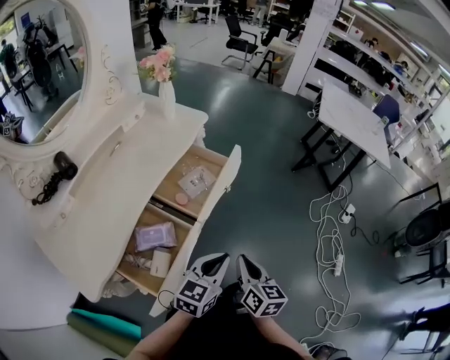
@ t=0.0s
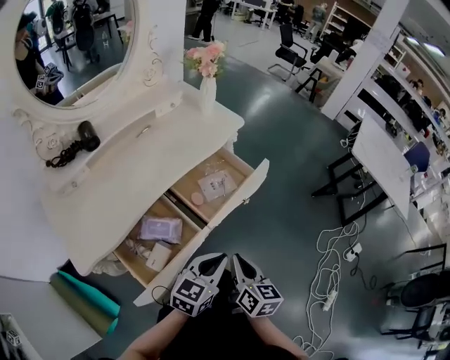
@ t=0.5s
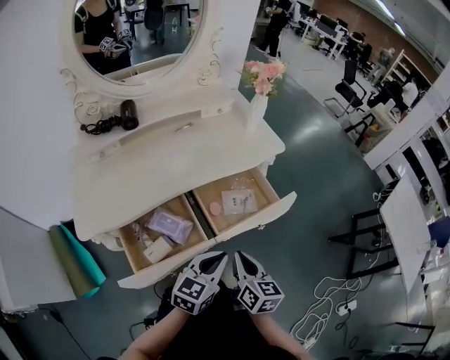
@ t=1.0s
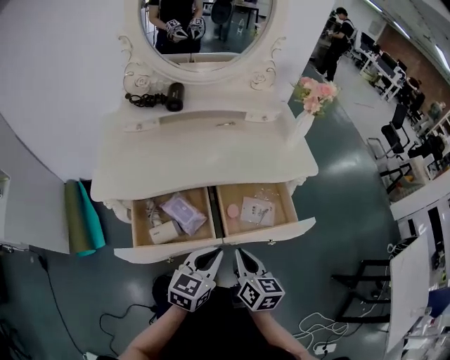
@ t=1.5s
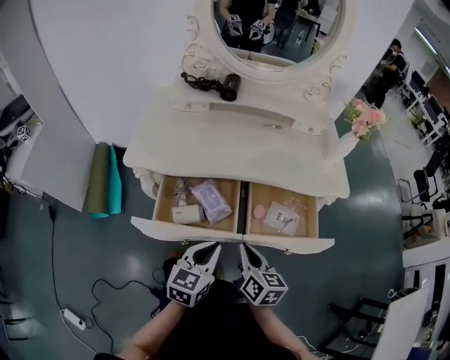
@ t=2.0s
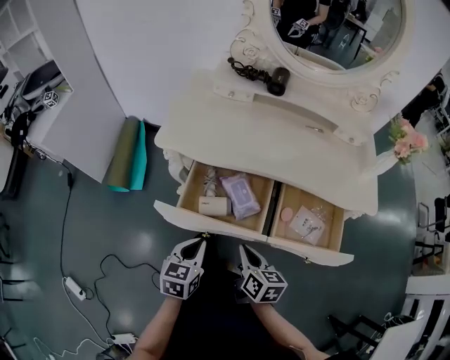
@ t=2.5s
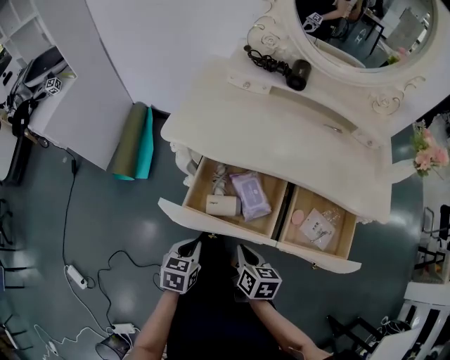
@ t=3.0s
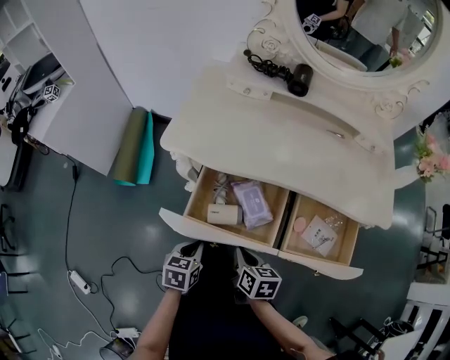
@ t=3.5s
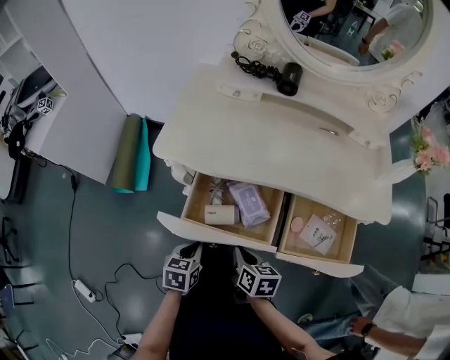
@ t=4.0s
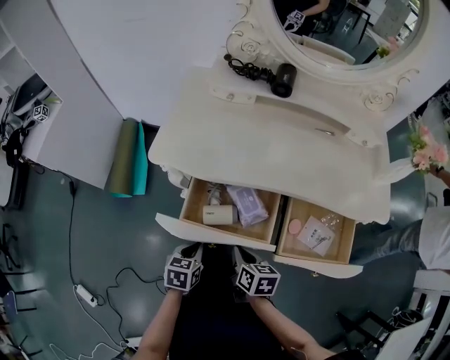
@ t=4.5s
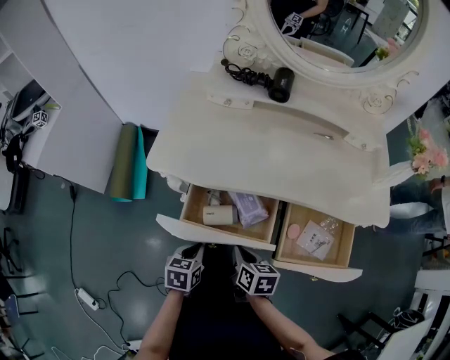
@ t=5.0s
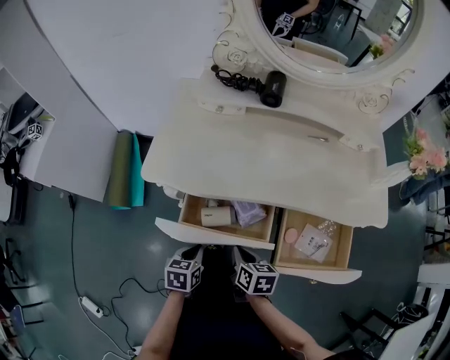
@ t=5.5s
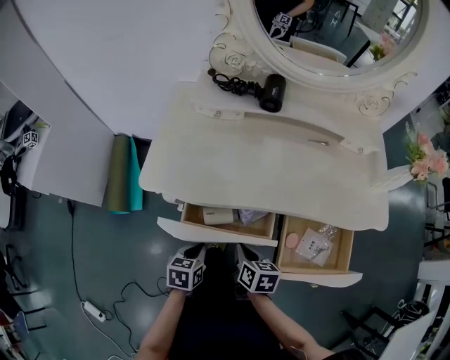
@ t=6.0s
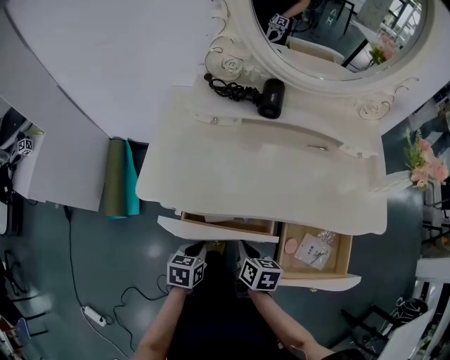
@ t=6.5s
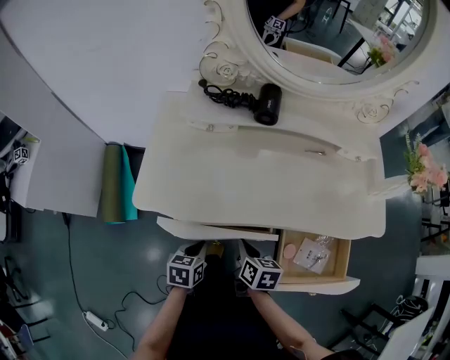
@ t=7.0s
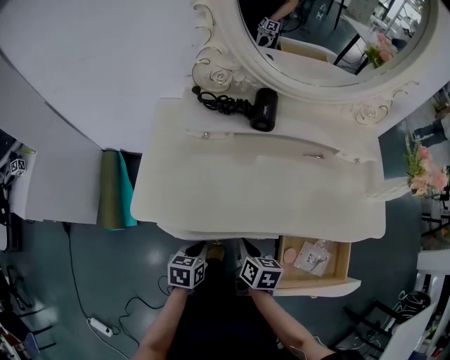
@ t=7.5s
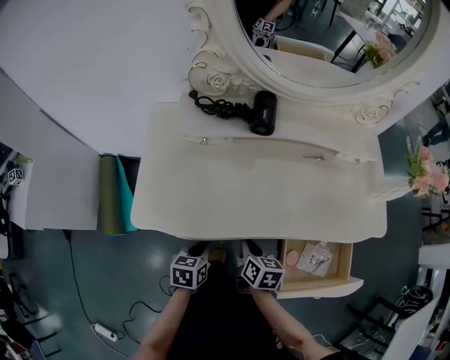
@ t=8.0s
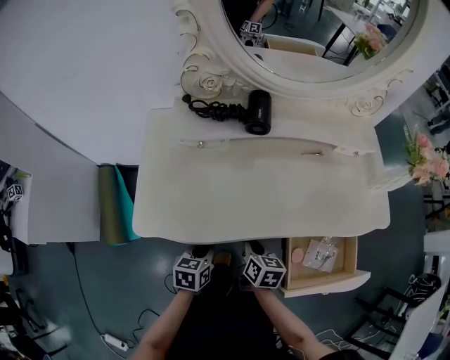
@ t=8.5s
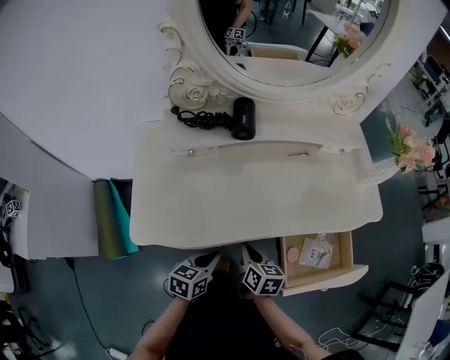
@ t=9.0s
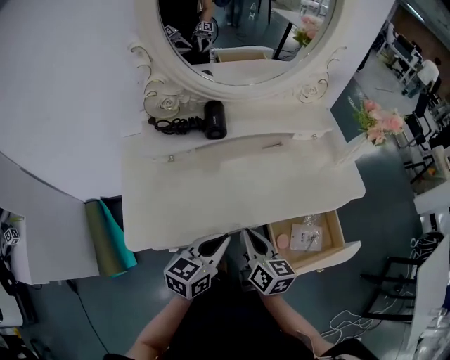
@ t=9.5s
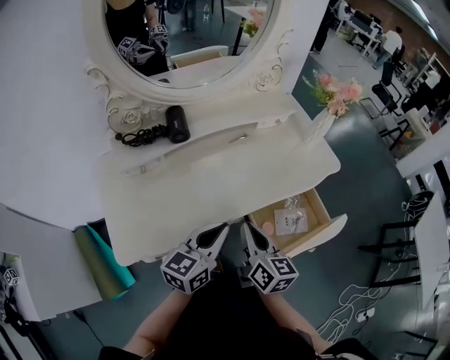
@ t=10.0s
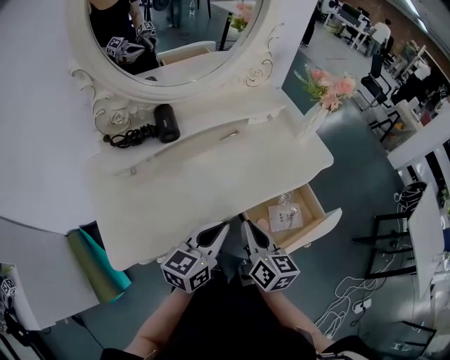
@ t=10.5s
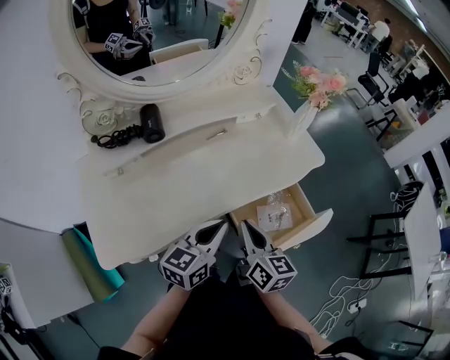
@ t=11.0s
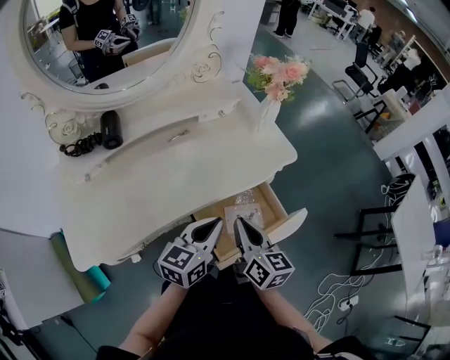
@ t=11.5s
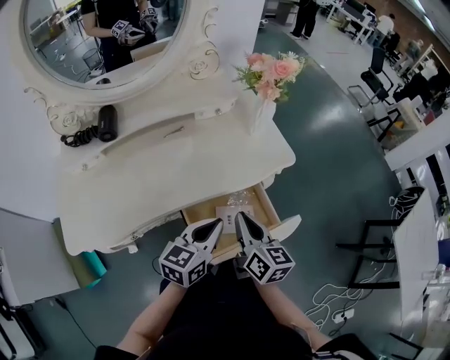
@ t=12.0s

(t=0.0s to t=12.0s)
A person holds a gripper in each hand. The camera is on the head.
t=0.0s - t=2.0s: The left gripper changes place by some 10 cm, and changes its angle by some 70 degrees, while the right gripper ends up about 15 cm from where it was, and changes its angle by some 70 degrees.
t=2.0s - t=4.0s: The right gripper heads downward and to the left, covering some 15 cm, and turns by approximately 30 degrees; the left gripper is displaced to the left and downward by some 20 cm, and swivels roughly 30 degrees.
t=4.0s - t=6.0s: The grippers both shift forward by approximately 10 cm.
t=6.0s - t=8.0s: Both grippers move forward, some 10 cm.
t=8.0s - t=10.0s: The grippers both shift upward by some 20 cm. The left gripper tips its fingers upward by some 40 degrees; the right gripper swivels about 40 degrees.
t=10.0s - t=12.0s: Both grippers move to the right, roughly 20 cm.

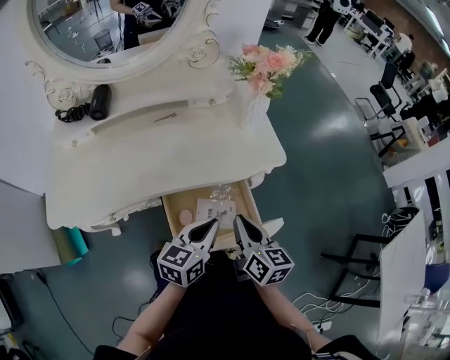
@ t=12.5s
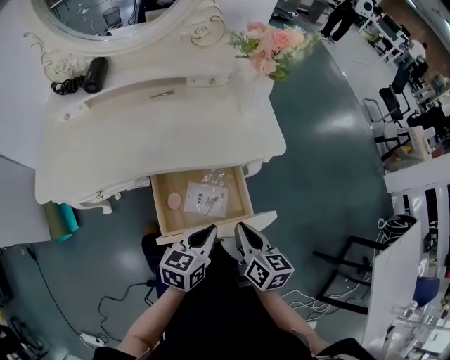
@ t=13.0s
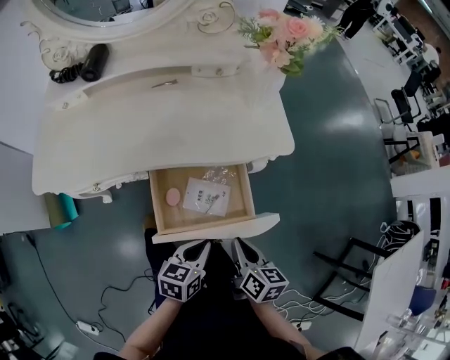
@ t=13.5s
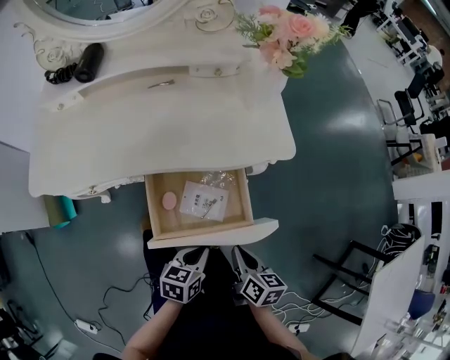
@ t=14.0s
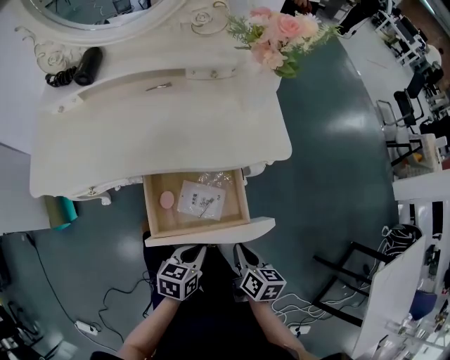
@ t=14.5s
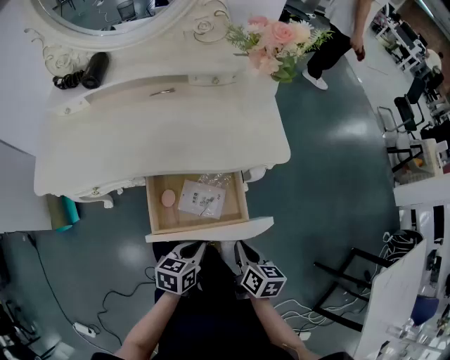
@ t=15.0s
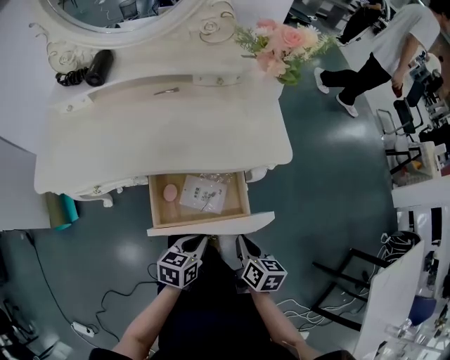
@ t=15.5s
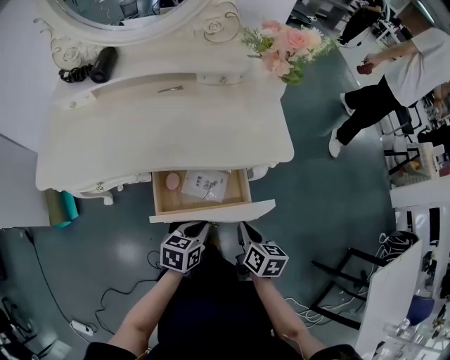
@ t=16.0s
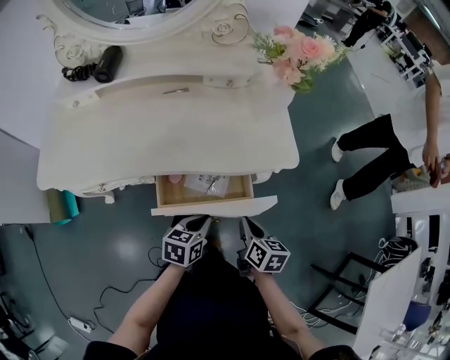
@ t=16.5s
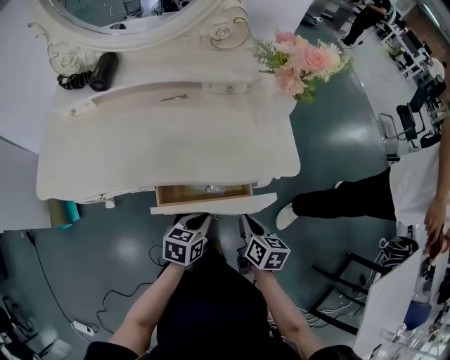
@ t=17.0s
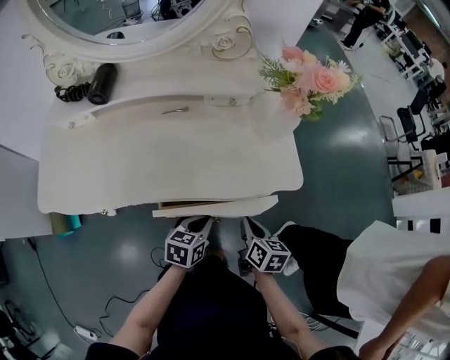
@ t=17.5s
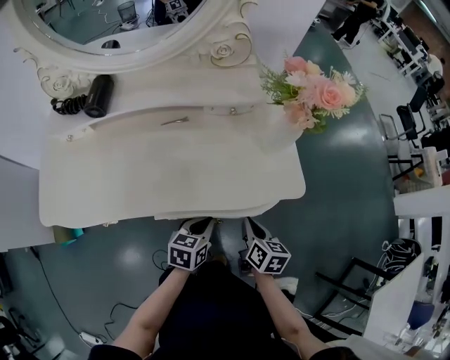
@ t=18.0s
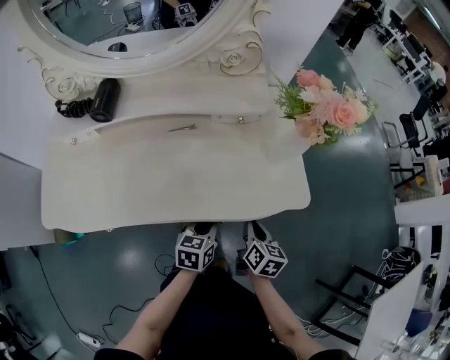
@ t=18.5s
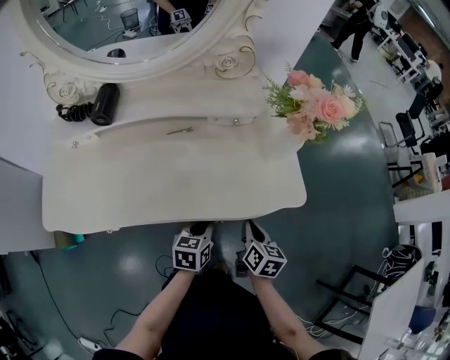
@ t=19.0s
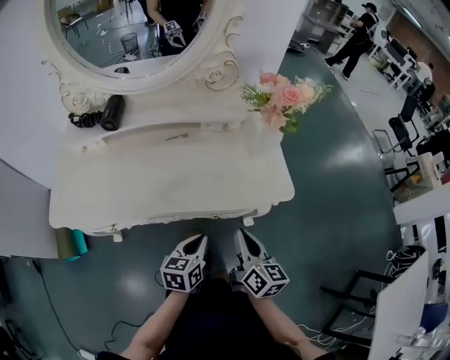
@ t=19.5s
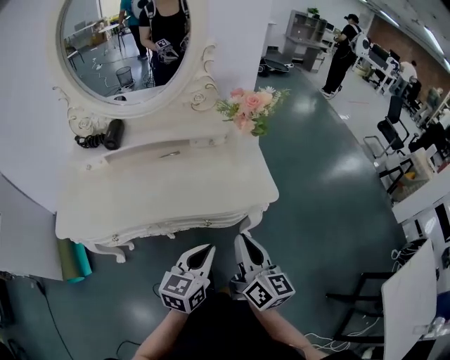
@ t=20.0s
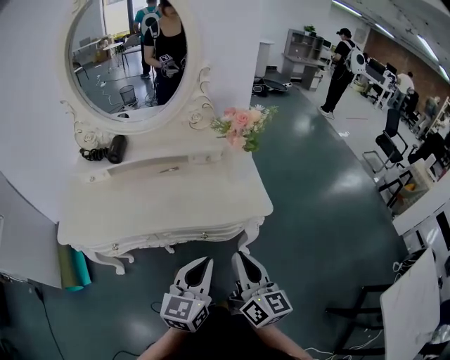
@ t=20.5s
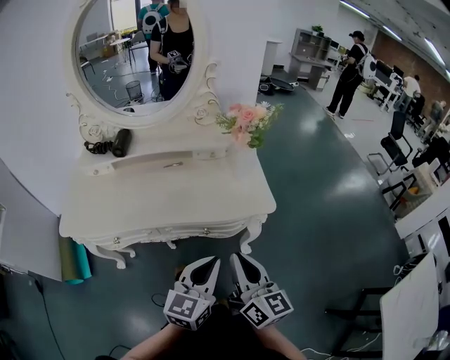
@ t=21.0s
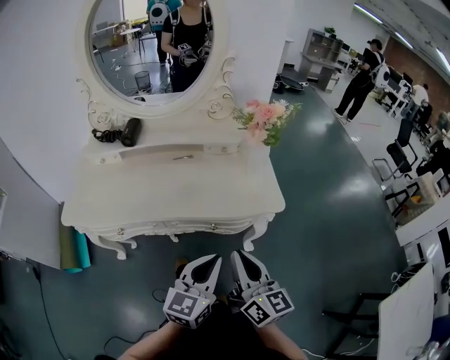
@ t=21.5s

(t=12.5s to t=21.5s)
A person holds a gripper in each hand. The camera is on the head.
t=12.5s - t=14.5s: The left gripper moves downward and backward, approximately 15 cm, and rotates approximately 20 degrees, while the right gripper travels downward, to the right and backward by some 20 cm, and swivels roughly 20 degrees.
t=14.5s - t=17.0s: The grippers both shift forward by about 10 cm.
t=17.0s - t=19.5s: The right gripper travels upward by roughly 10 cm, and changes its angle by roughly 30 degrees, while the left gripper heads upward, covering some 5 cm, and moves approximately 10 cm forward and comes back.
t=19.5s - t=21.5s: The right gripper goes some 15 cm upward and backward. The left gripper shifts approximately 20 cm upward, backward and to the right, and swivels about 30 degrees.

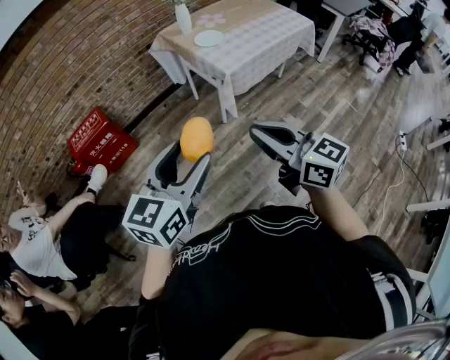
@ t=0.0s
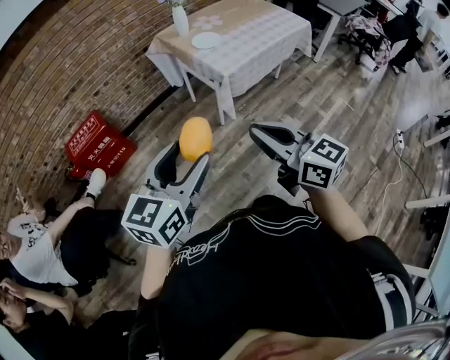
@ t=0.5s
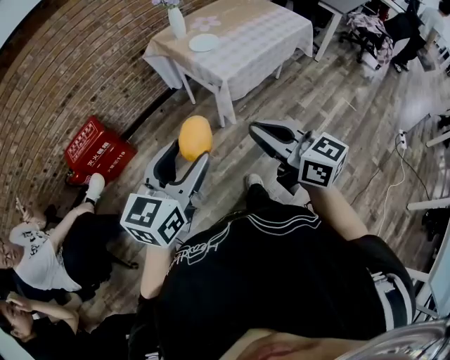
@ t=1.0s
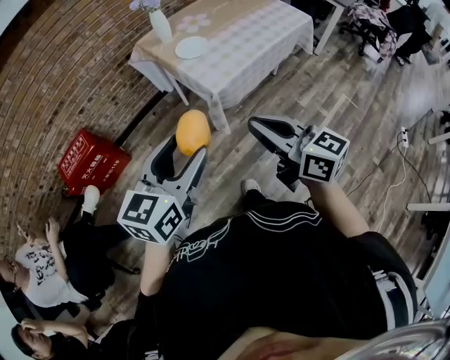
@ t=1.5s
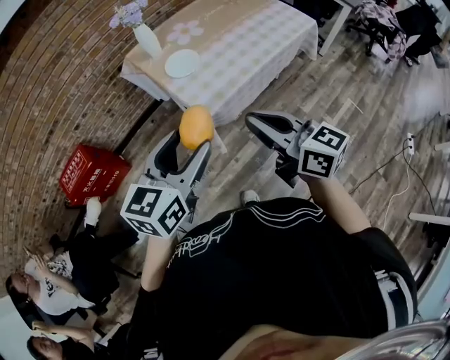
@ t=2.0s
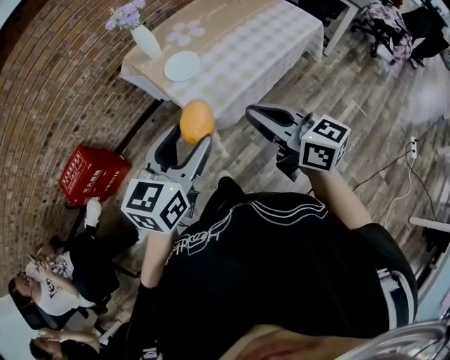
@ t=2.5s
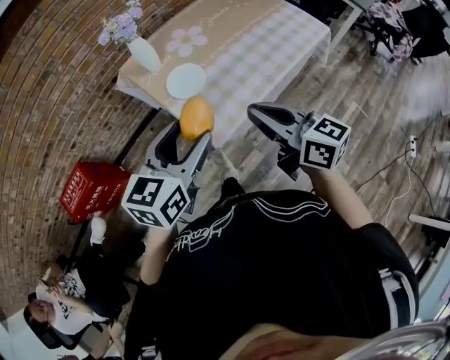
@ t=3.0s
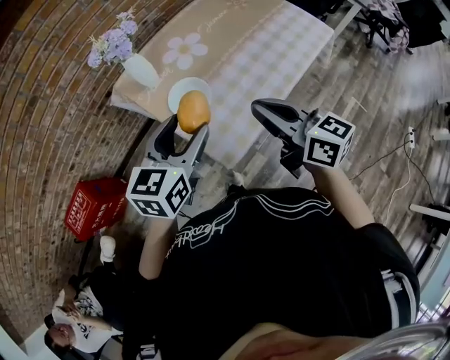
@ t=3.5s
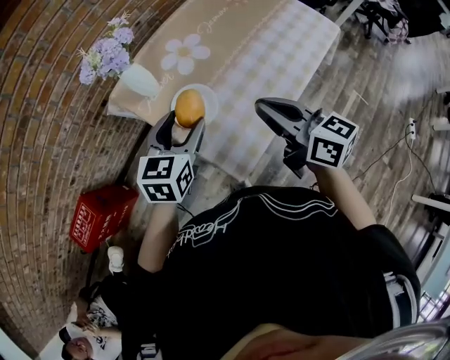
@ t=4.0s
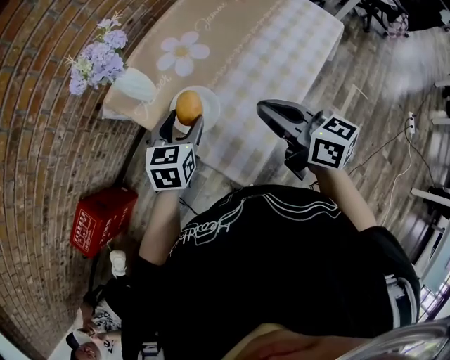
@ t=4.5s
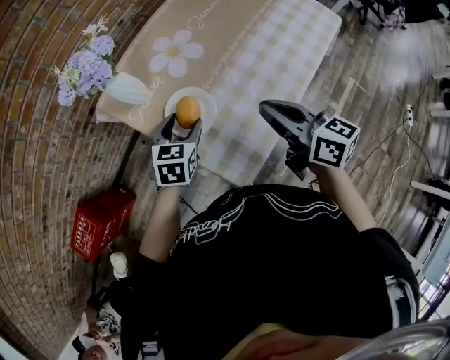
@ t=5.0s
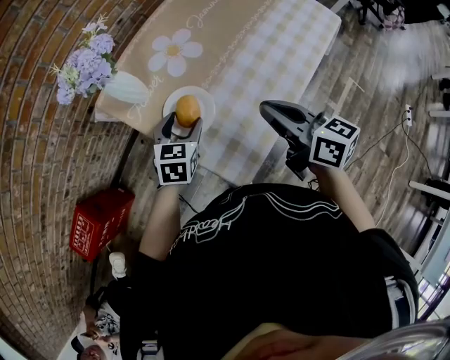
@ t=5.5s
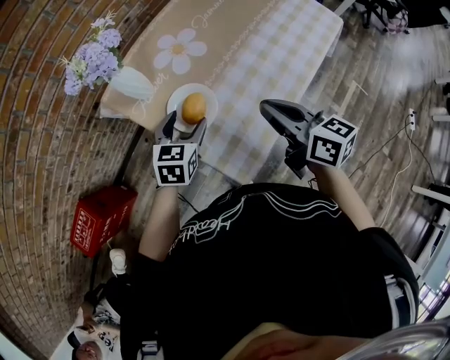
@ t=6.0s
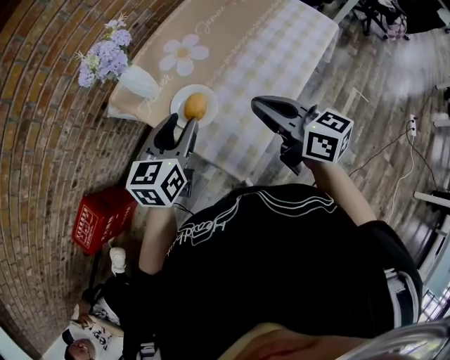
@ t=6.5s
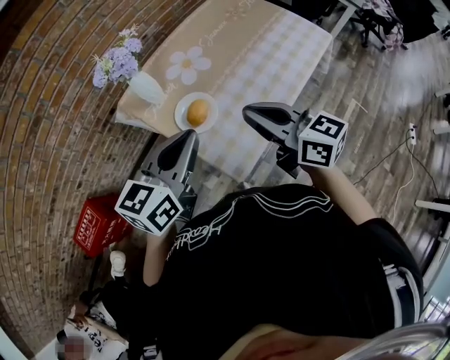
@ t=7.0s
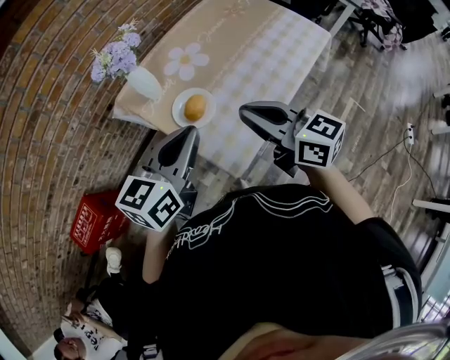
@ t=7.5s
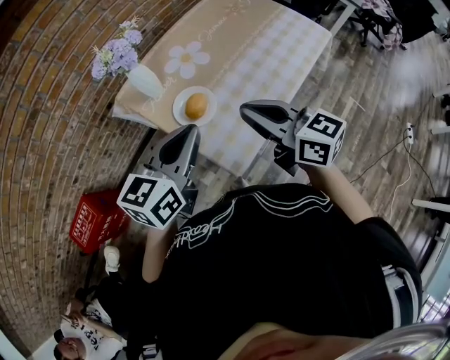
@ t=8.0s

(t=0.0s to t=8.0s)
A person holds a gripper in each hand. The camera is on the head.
t=0.0s - t=2.0s: The grippers both shift forward and to the right by about 35 cm.
t=2.0s - t=4.0s: Both grippers travel together forward, about 35 cm.
t=4.0s - t=6.0s: The left gripper is displaced downward by approximately 10 cm. The right gripper shifts roughly 5 cm downward.
t=6.0s - t=8.0s: The left gripper is displaced upward and backward by some 25 cm, changes its angle by some 30 degrees, and closes its fingers. The right gripper heads upward and backward, covering approximately 10 cm.
